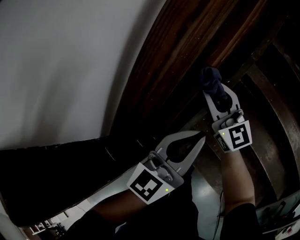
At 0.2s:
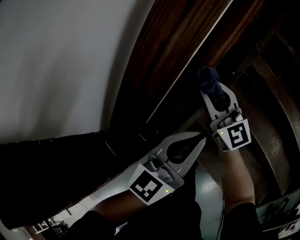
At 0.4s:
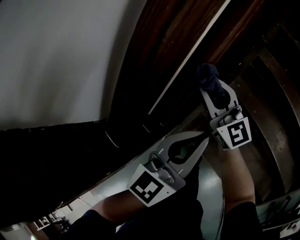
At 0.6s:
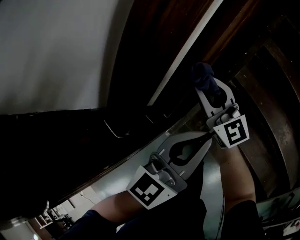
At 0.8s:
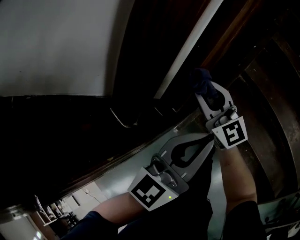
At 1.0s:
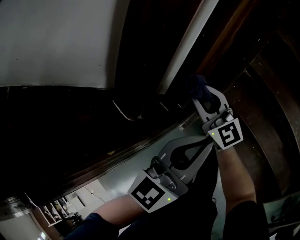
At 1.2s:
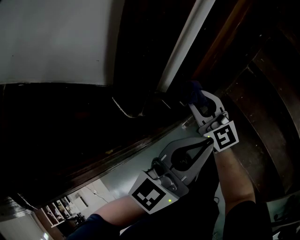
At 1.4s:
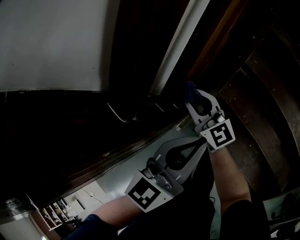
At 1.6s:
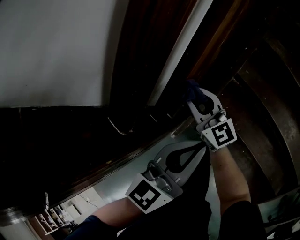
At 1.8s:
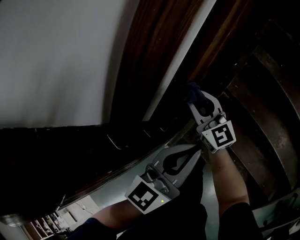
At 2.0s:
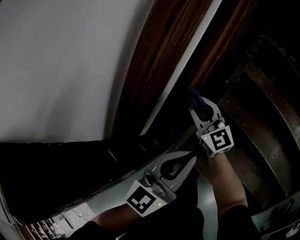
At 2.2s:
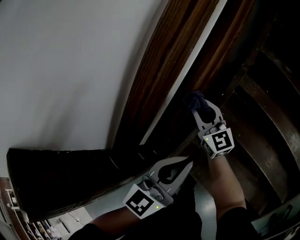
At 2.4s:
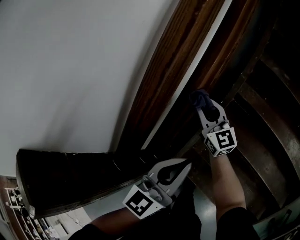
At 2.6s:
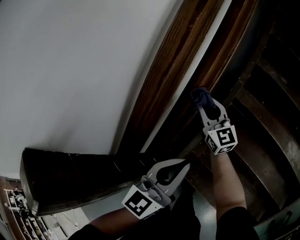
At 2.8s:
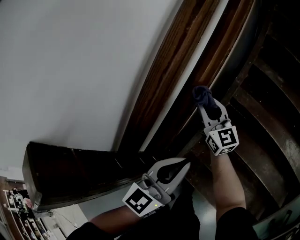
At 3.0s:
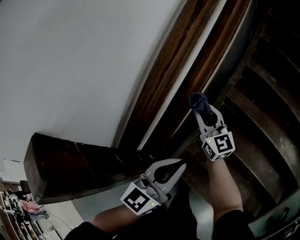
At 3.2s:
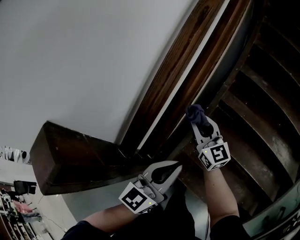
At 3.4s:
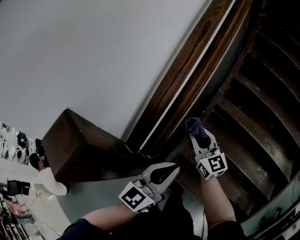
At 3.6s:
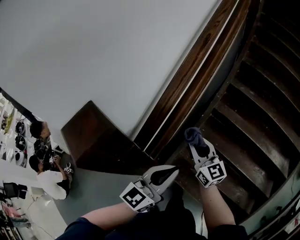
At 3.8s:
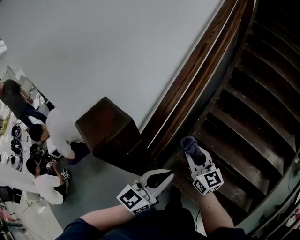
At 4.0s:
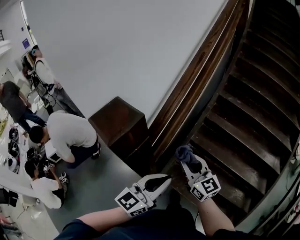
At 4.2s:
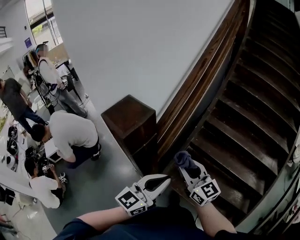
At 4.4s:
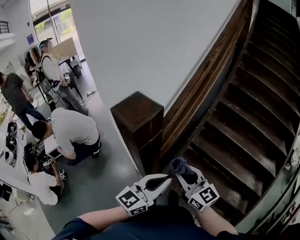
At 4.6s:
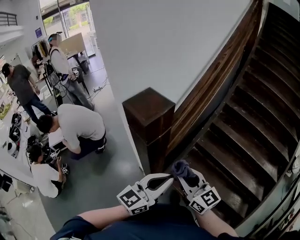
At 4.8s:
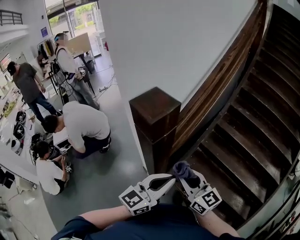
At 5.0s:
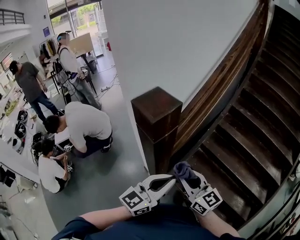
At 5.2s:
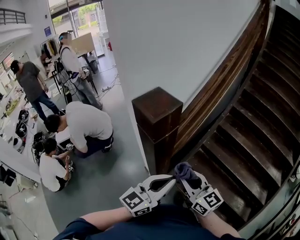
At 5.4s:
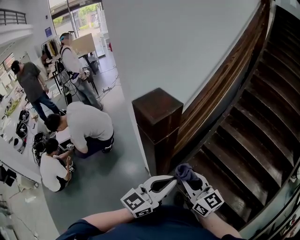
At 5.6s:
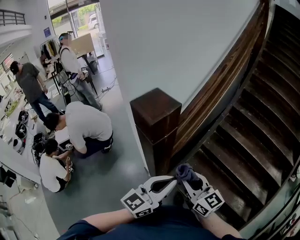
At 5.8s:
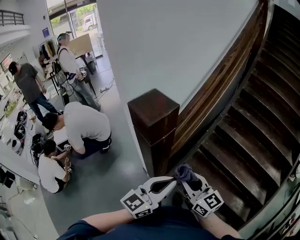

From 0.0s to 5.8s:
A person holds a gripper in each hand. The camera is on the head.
From 0.0s to 1.4s: The left gripper shifts approximately 25 cm backward, downward and to the left, while the right gripper travels backward, to the left and downward by some 30 cm.
From 1.4s to 2.8s: The left gripper heads upward, to the right and forward, covering some 20 cm, while the right gripper goes roughly 35 cm forward, upward and to the right.
From 2.8s to 4.4s: Both grippers travel together backward, some 40 cm.
From 4.4s to 5.8s: There are only small adjustments of the grippers.

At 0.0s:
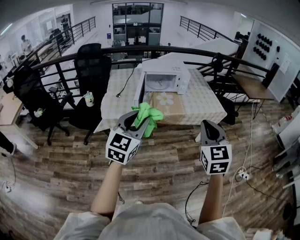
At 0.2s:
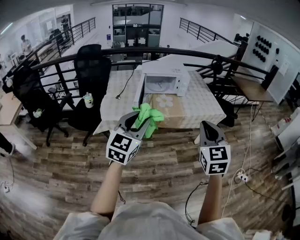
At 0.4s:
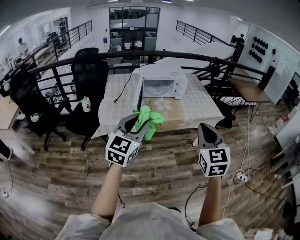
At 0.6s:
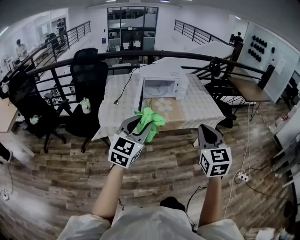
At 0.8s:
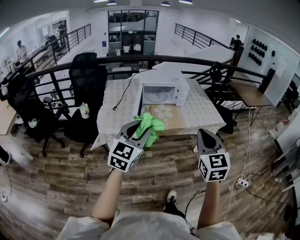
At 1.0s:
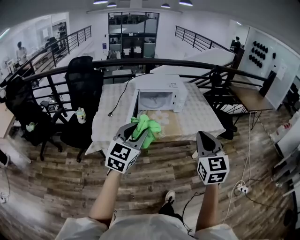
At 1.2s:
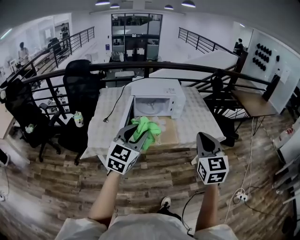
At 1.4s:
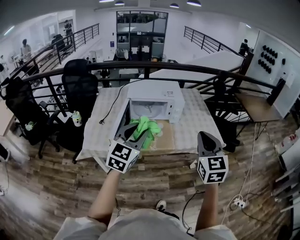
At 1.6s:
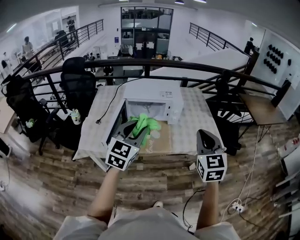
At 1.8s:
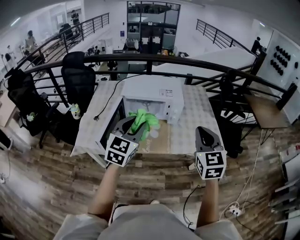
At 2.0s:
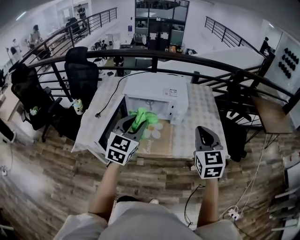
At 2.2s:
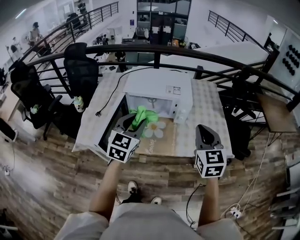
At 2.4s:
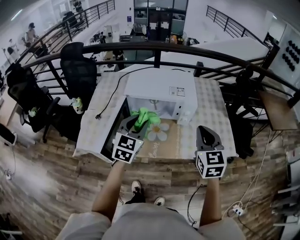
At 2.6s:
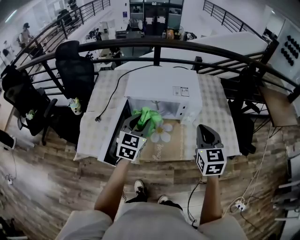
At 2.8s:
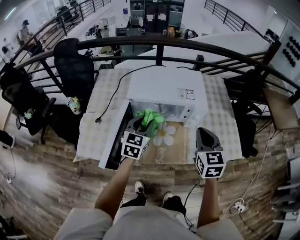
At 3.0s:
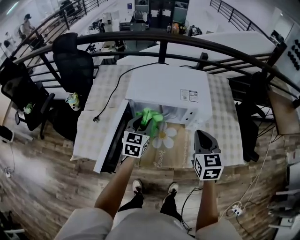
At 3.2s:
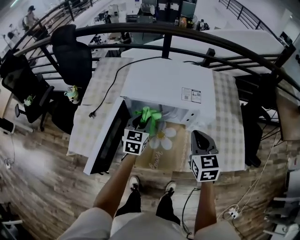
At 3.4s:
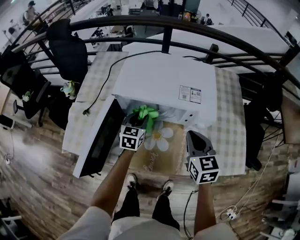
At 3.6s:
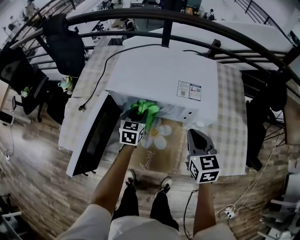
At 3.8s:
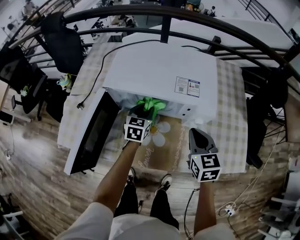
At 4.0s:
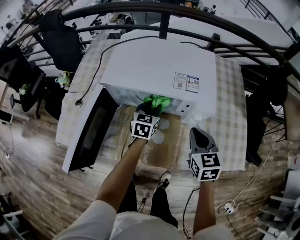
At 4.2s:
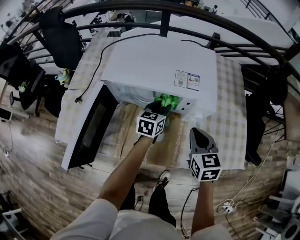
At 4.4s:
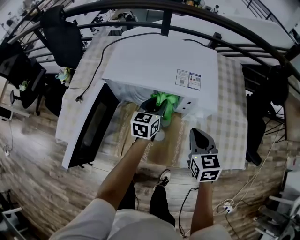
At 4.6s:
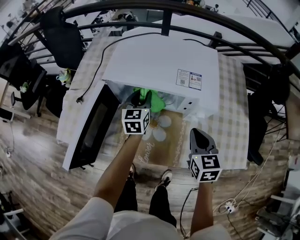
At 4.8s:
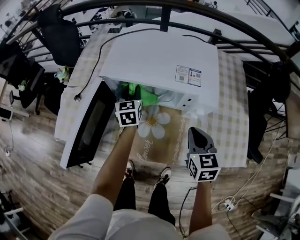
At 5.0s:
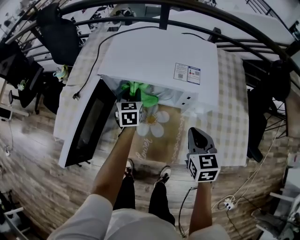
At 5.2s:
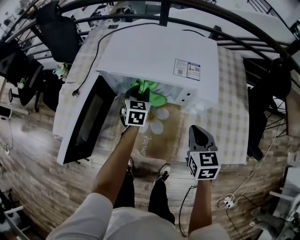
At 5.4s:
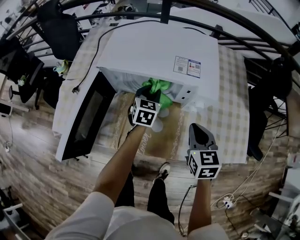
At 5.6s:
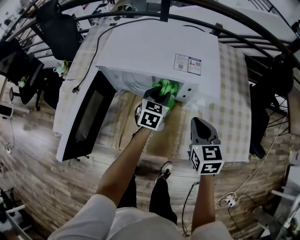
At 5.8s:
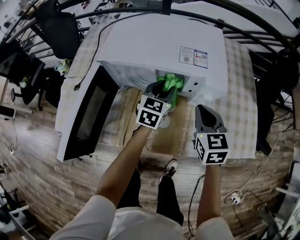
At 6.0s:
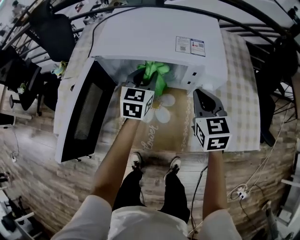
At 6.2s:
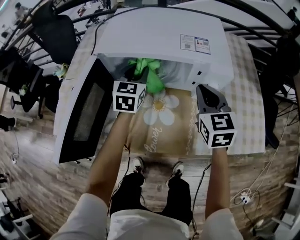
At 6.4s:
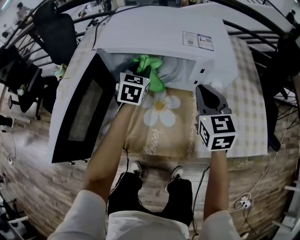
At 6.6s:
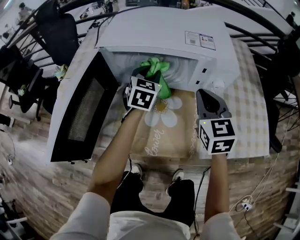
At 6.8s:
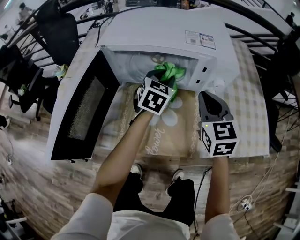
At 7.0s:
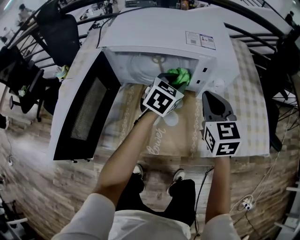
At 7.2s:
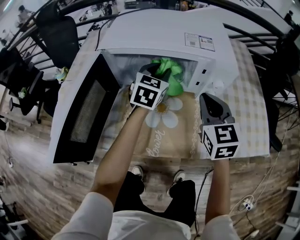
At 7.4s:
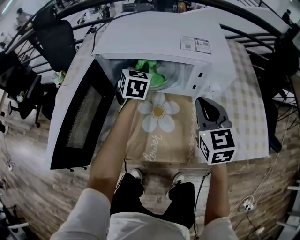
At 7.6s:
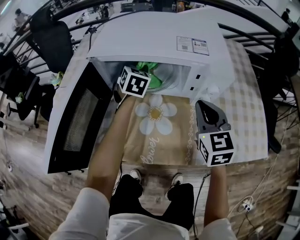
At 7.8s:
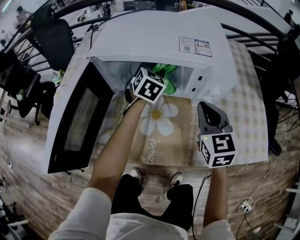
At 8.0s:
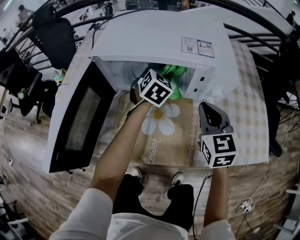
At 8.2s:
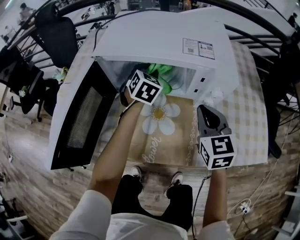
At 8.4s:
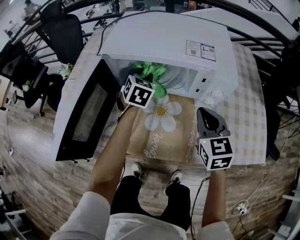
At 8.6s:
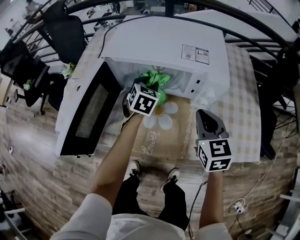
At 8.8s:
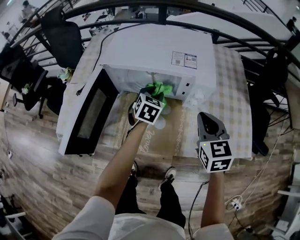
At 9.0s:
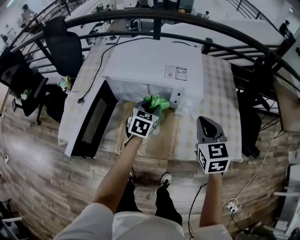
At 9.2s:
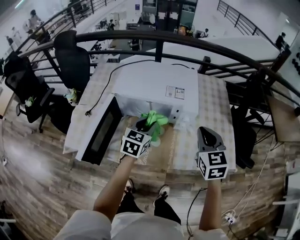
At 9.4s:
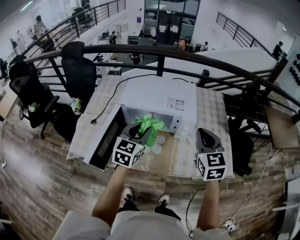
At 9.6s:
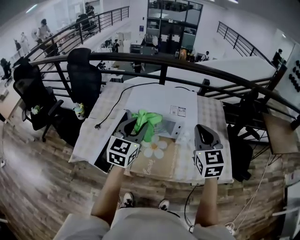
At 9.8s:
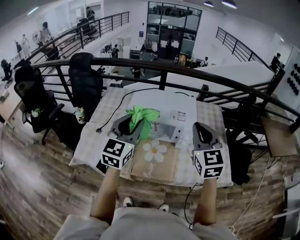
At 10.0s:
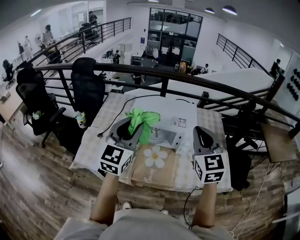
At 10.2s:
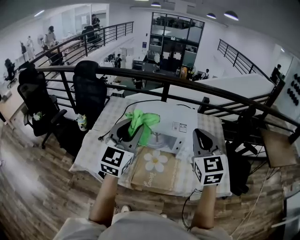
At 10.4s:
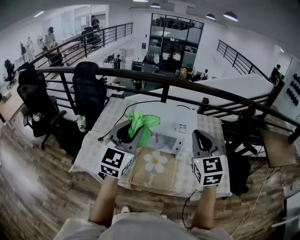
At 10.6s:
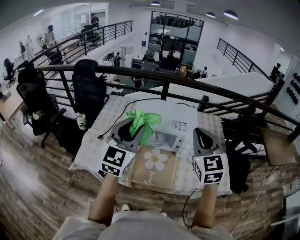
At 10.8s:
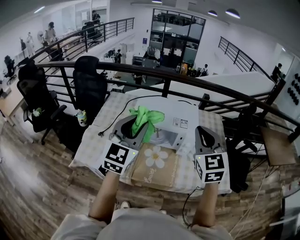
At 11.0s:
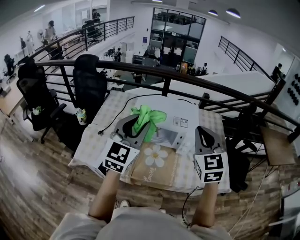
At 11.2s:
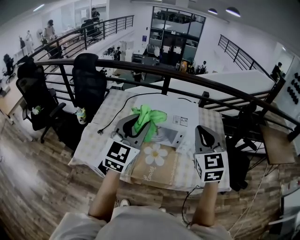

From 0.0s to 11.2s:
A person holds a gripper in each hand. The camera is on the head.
From 0.0s to 1.6s: The grippers both shift forward by some 35 cm.
From 1.6s to 3.2s: The grippers both shift forward and downward by some 40 cm. The right gripper swivels some 20 degrees. Meanwhile the left gripper changes its angle by approximately 30 degrees.
From 3.2s to 4.8s: The left gripper is displaced forward and downward by about 10 cm, and reaches about 15 cm to the right, then returns. The right gripper travels downward by approximately 10 cm.
From 4.8s to 6.4s: The right gripper heads forward, covering approximately 5 cm, while the left gripper travels to the right and back again, approximately 15 cm each way, and rotates some 20 degrees.
From 6.4s to 8.0s: The left gripper moves left and right over approximately 15 cm, changing direction 2 times.
From 8.0s to 9.6s: The left gripper shifts some 40 cm upward and backward, and turns by about 30 degrees. Meanwhile the right gripper moves upward, approximately 30 cm.
From 9.6s to 11.2s: The right gripper moves upward, approximately 5 cm; the left gripper travels upward by approximately 10 cm.

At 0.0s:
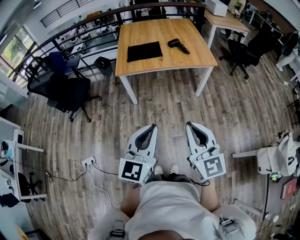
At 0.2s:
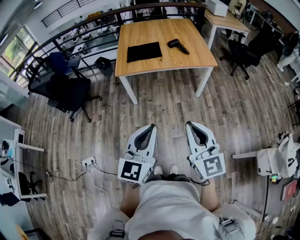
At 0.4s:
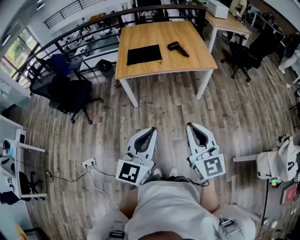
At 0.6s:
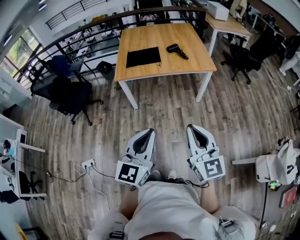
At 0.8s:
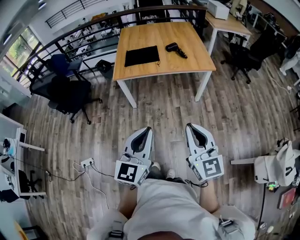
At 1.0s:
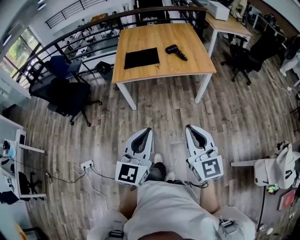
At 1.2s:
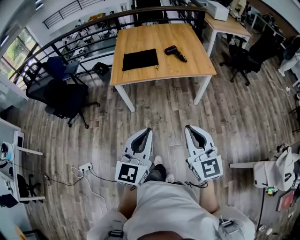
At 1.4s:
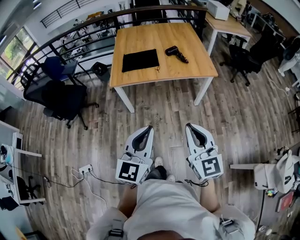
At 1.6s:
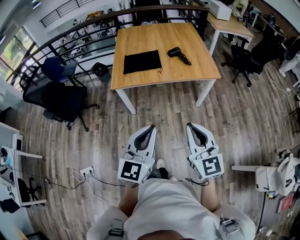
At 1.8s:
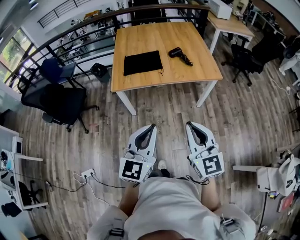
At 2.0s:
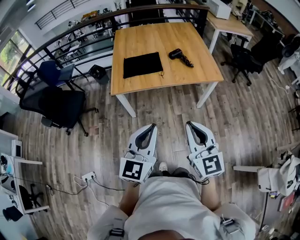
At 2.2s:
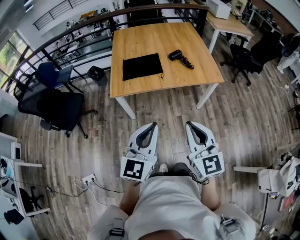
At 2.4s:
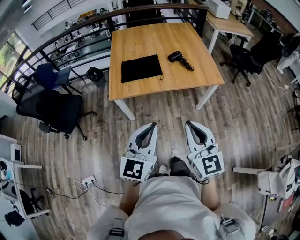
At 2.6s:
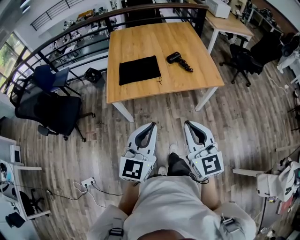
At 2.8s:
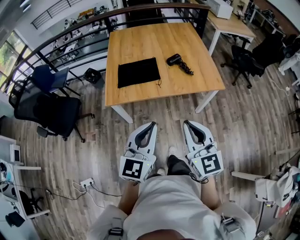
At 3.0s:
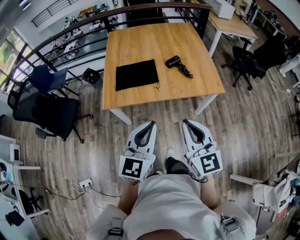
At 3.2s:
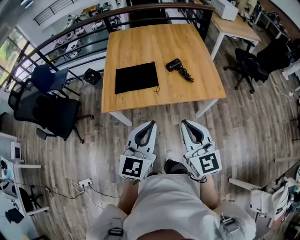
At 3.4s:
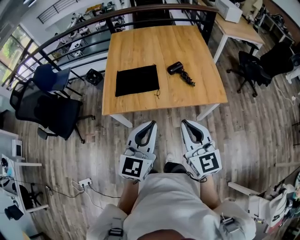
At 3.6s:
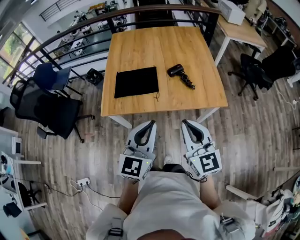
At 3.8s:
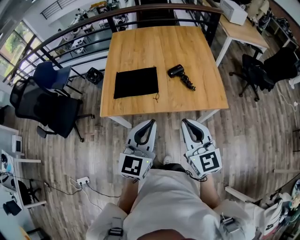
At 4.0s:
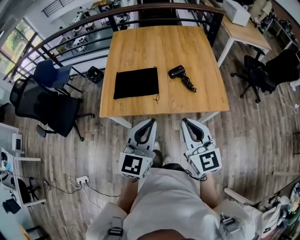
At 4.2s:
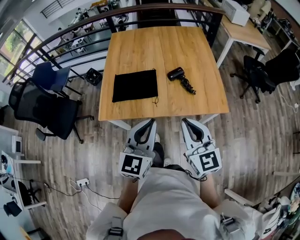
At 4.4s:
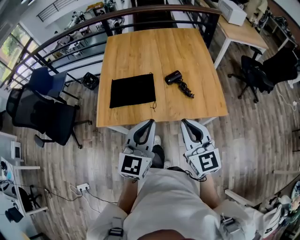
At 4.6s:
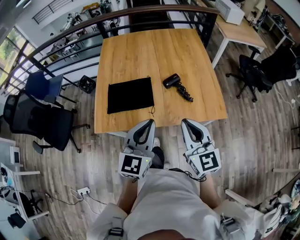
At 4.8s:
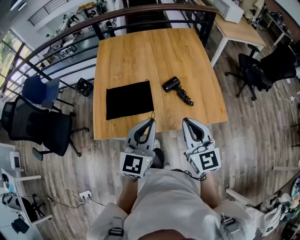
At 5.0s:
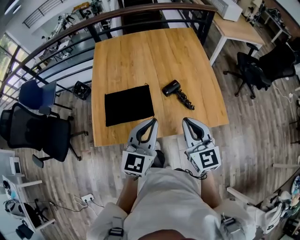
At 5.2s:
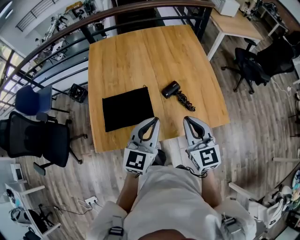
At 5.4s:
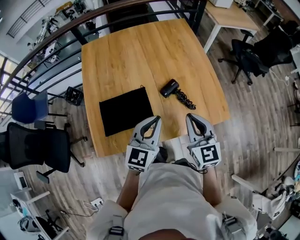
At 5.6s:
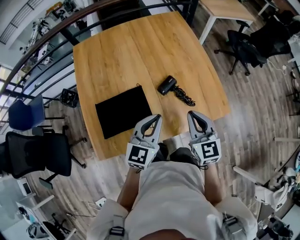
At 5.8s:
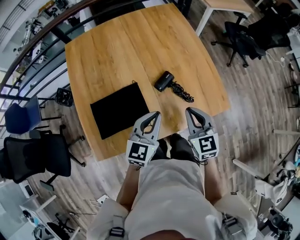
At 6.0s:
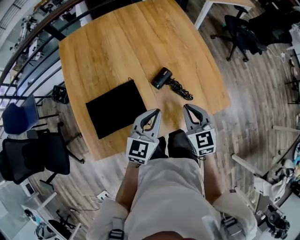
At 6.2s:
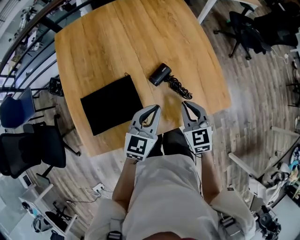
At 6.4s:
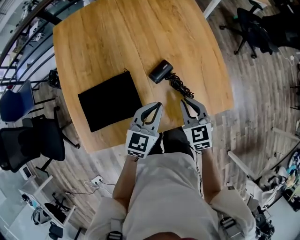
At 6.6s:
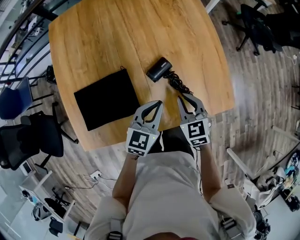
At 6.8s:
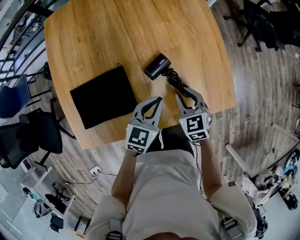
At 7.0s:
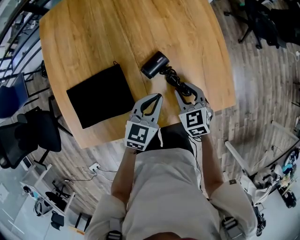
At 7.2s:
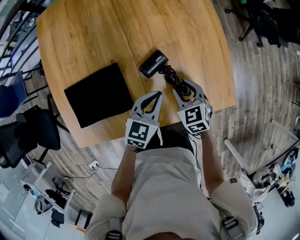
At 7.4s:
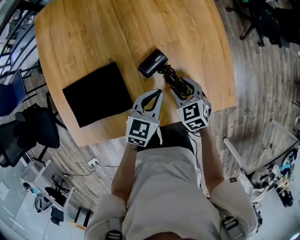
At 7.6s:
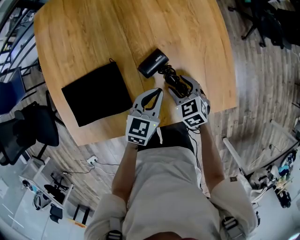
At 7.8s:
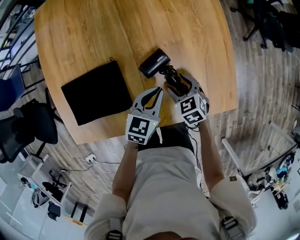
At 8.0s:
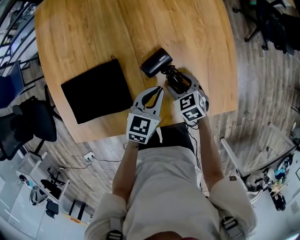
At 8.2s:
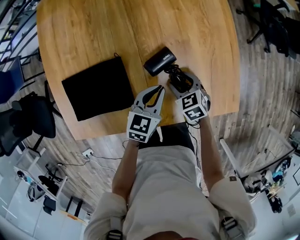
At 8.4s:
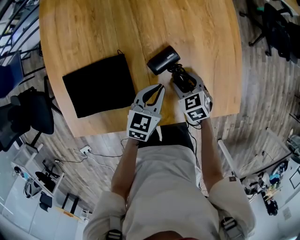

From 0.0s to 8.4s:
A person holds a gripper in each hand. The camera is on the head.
From 0.0s to 1.4s: Both grippers move forward, some 10 cm.
From 1.4s to 2.8s: Both grippers travel together forward, about 20 cm.
From 2.8s to 4.2s: The two grippers go about 20 cm forward.
From 4.2s to 5.6s: The right gripper is displaced forward and downward by approximately 25 cm, and swivels approximately 20 degrees, while the left gripper is displaced forward by approximately 25 cm, and turns by some 20 degrees.
From 5.6s to 7.0s: The right gripper is displaced downward and forward by some 25 cm, turns by some 30 degrees, and opens up. Meanwhile the left gripper heads downward, forward and to the right, covering roughly 20 cm.
From 7.0s to 8.4s: The grippers both shift downward by some 10 cm.
